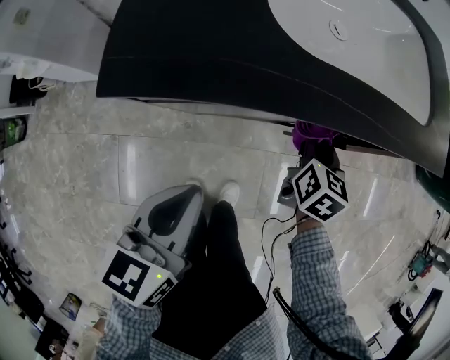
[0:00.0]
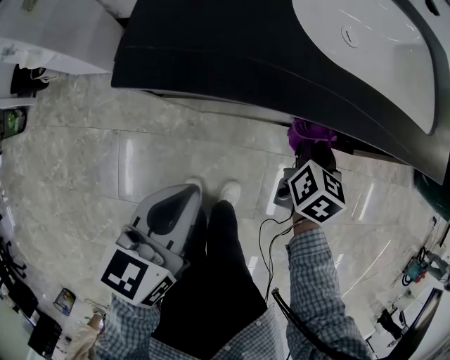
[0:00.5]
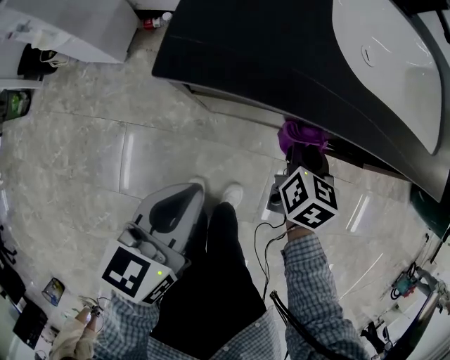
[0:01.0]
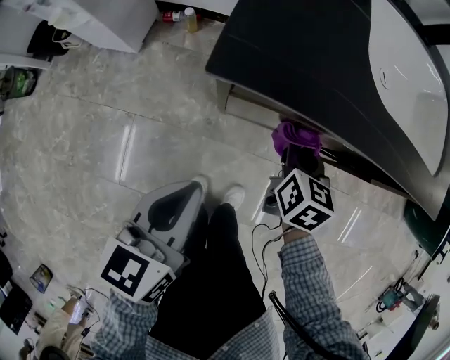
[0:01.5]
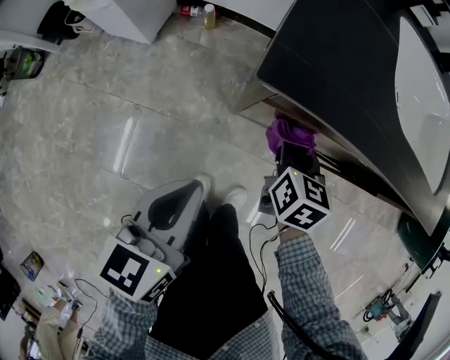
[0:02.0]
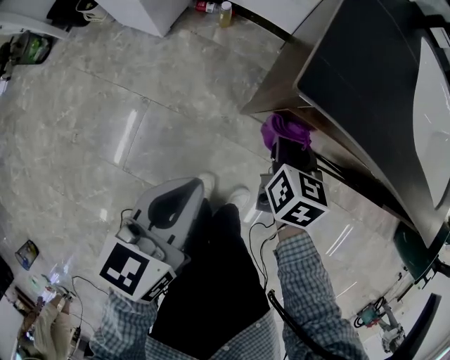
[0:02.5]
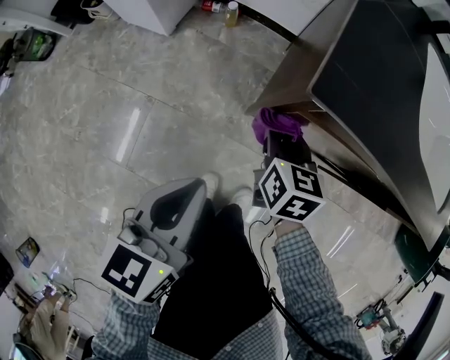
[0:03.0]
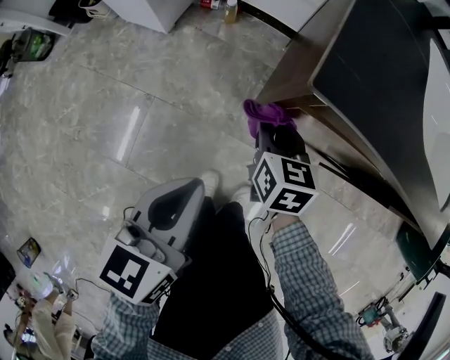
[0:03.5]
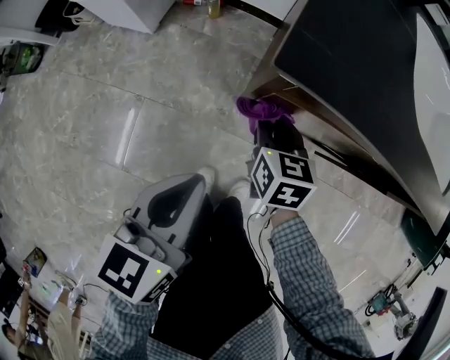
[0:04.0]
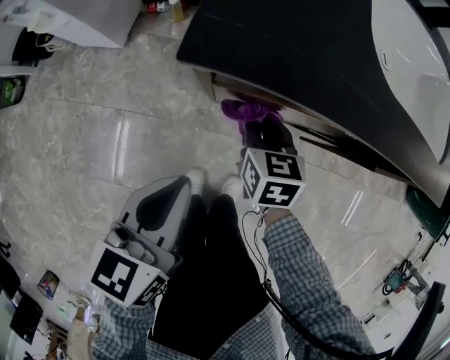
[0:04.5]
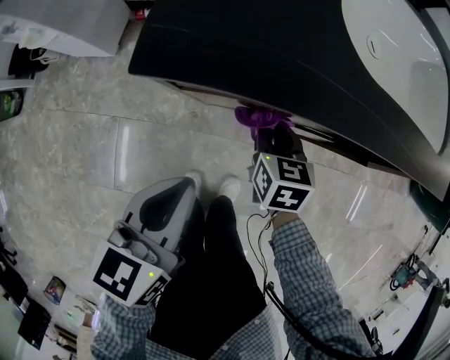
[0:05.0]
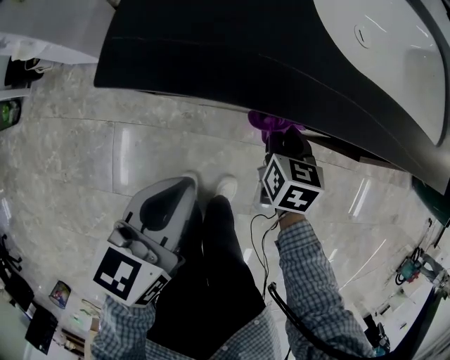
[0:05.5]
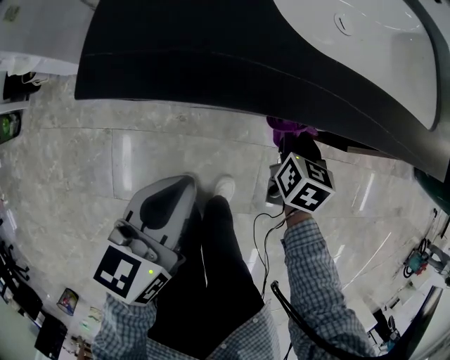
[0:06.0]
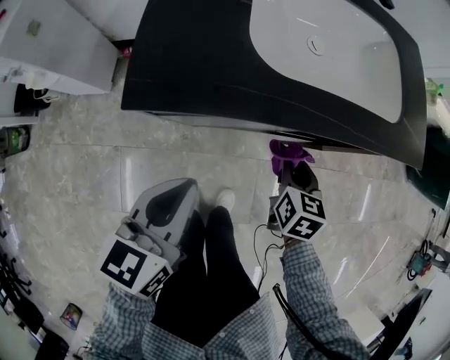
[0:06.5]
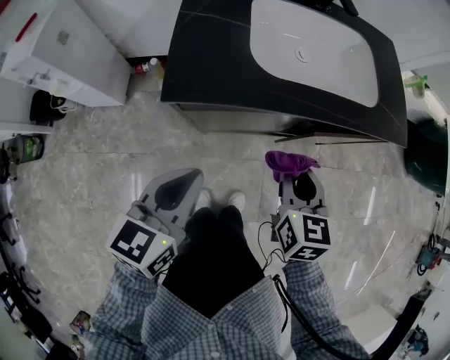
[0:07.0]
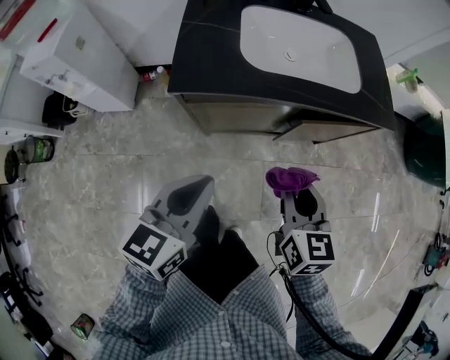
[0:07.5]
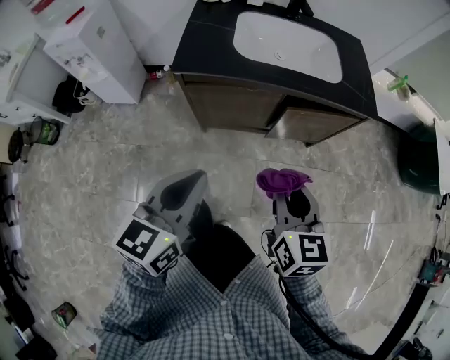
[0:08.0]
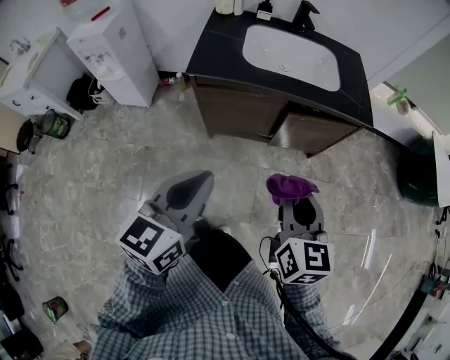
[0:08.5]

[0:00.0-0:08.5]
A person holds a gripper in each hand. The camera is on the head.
0:00.0 to 0:02.0: The right gripper heads to the left, covering roughly 25 cm, and changes its angle by approximately 20 degrees; the left gripper is displaced to the left and backward by approximately 15 cm.
0:02.0 to 0:04.0: The right gripper is displaced to the left by approximately 10 cm.
0:04.0 to 0:06.5: The left gripper travels to the right, upward and forward by some 20 cm; the right gripper moves to the right, some 30 cm, and swivels roughly 30 degrees.
0:06.5 to 0:08.5: The left gripper is displaced backward, upward and to the right by roughly 40 cm; the right gripper shifts approximately 50 cm upward and backward, and turns by approximately 30 degrees.

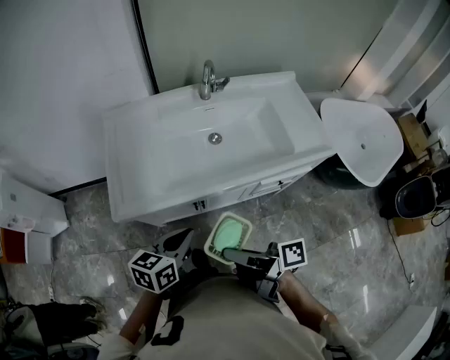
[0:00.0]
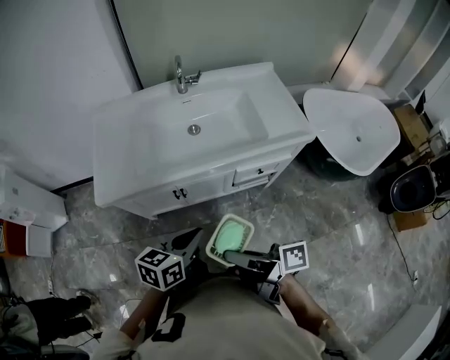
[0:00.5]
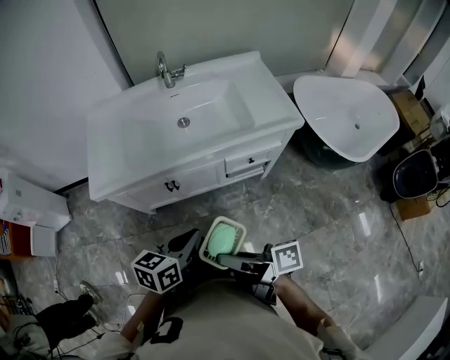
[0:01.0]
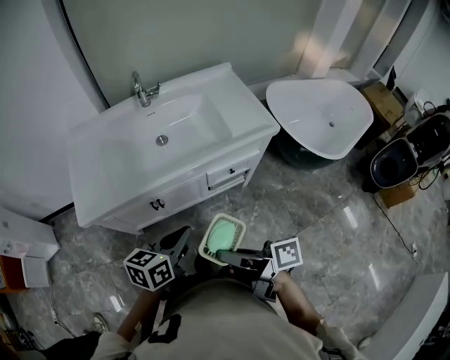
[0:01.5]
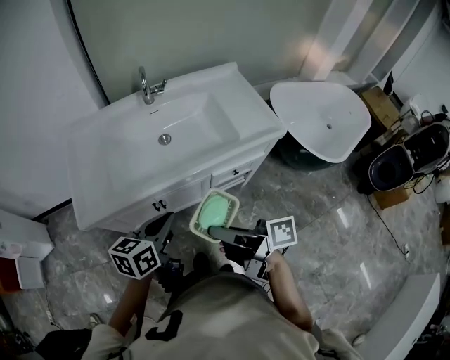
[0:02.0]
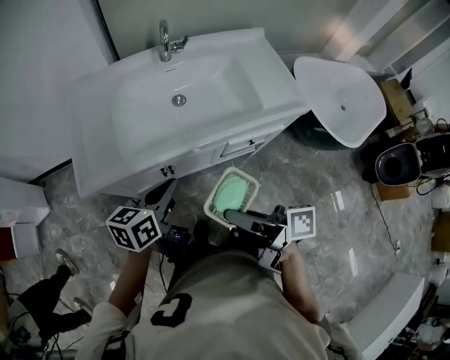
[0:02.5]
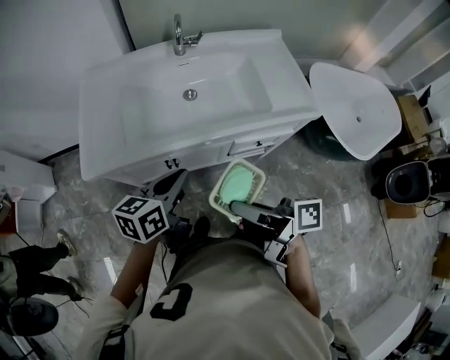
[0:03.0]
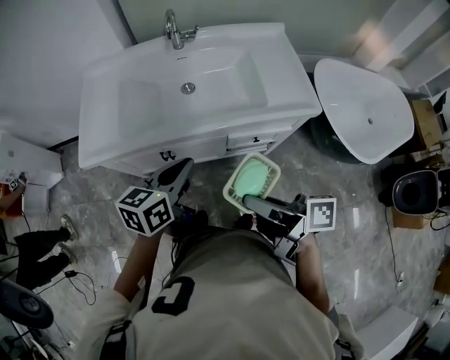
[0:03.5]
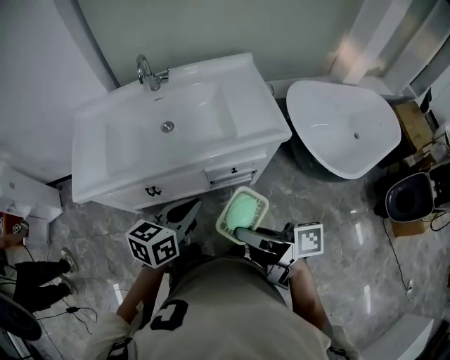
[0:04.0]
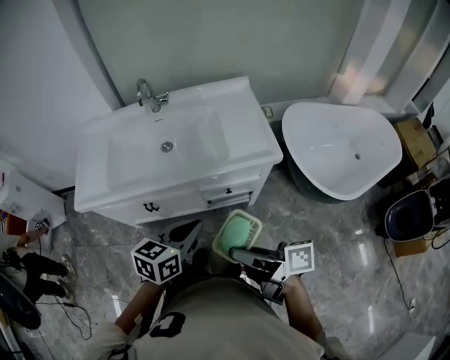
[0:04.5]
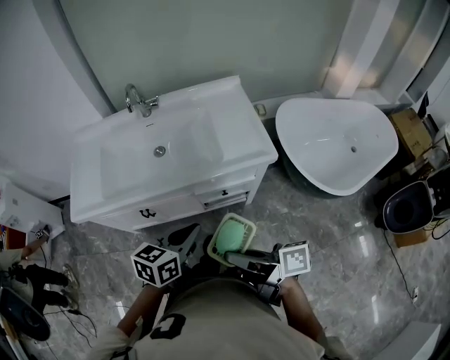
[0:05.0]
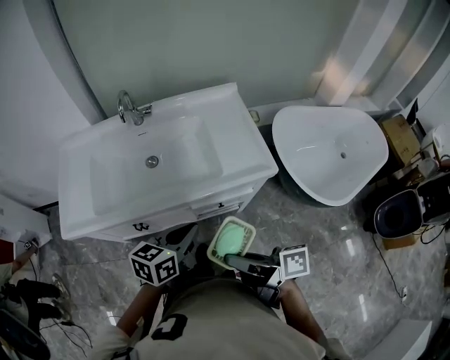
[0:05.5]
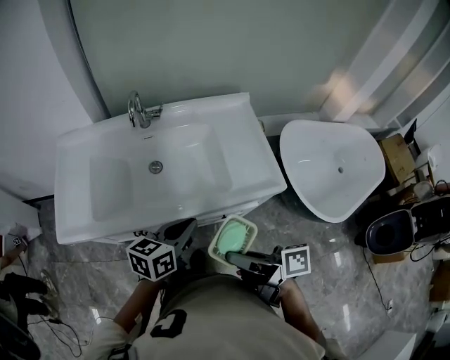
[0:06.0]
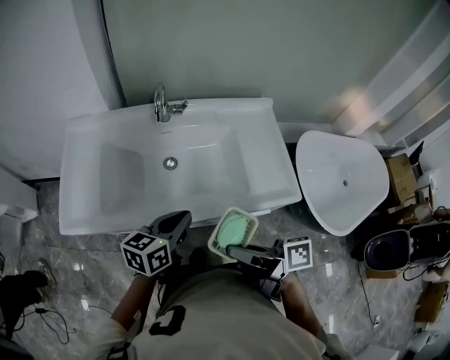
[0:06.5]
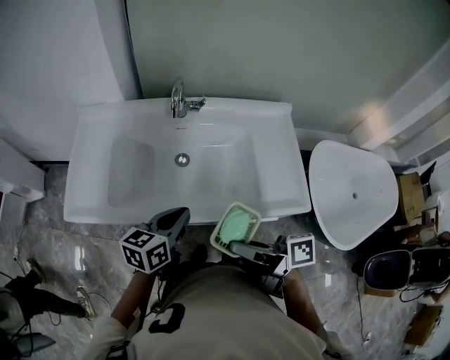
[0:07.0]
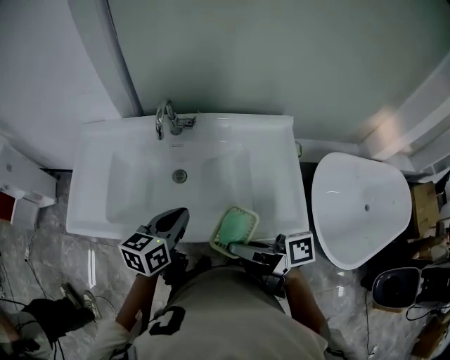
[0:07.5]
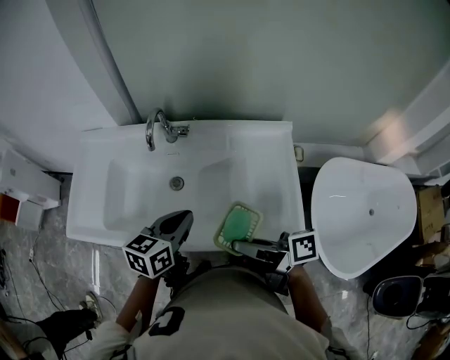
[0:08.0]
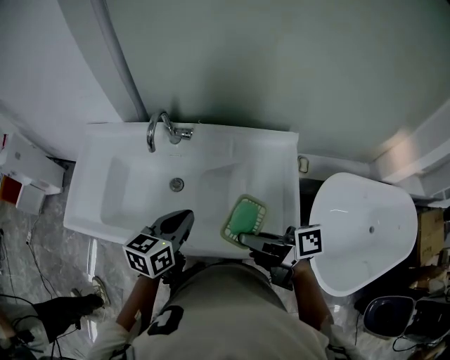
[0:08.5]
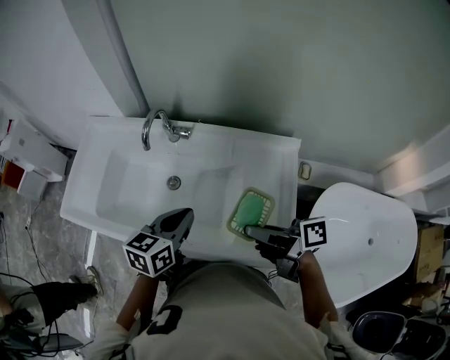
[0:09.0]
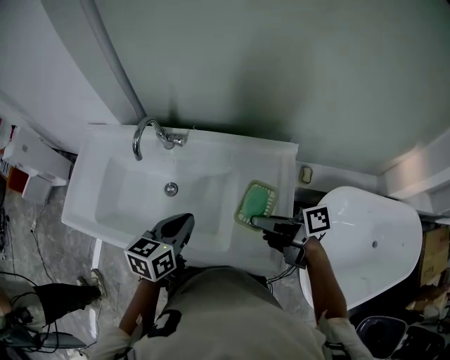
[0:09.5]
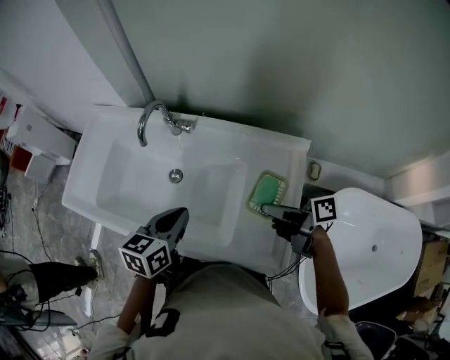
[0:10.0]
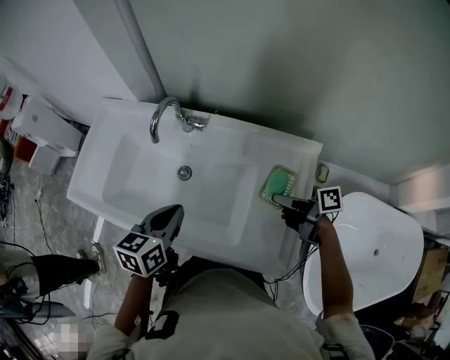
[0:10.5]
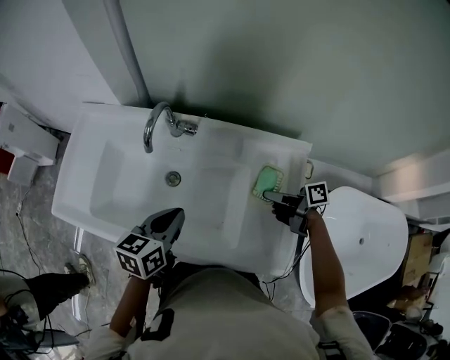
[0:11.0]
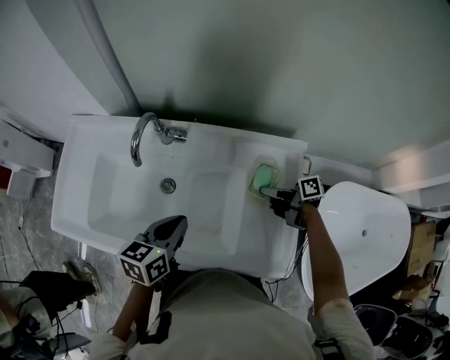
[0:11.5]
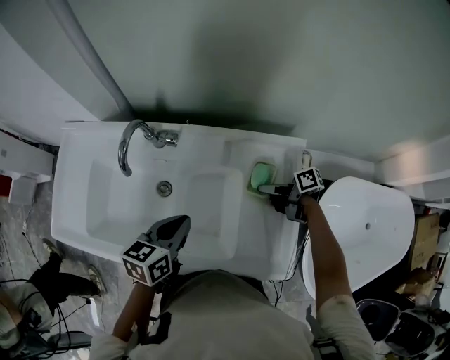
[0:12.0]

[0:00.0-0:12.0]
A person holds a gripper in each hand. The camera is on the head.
0:02.0 to 0:04.0: The left gripper ends up about 20 cm from where it was.
0:04.0 to 0:06.0: The left gripper ends up about 15 cm from where it was.
0:06.0 to 0:08.0: The left gripper shifts by about 15 cm.
0:08.0 to 0:10.0: The left gripper ends up roughly 5 cm from where it was.
0:10.0 to 0:12.0: The left gripper shifts by approximately 5 cm.

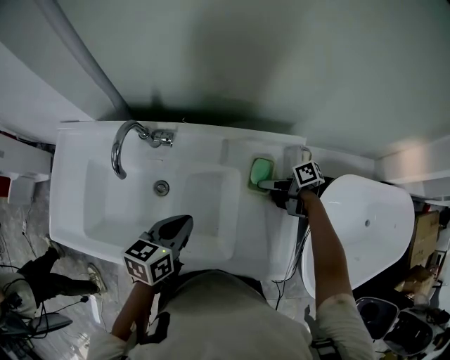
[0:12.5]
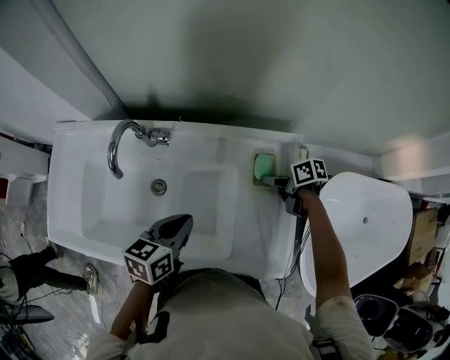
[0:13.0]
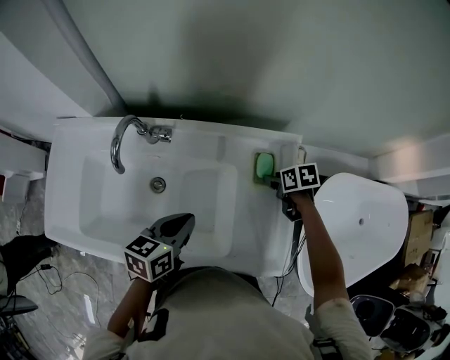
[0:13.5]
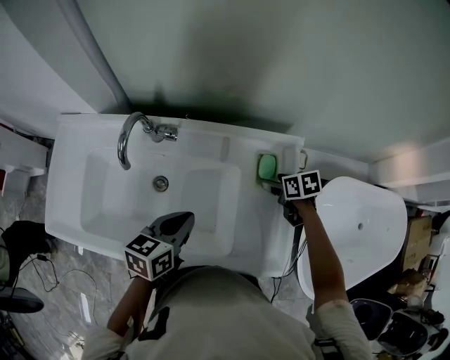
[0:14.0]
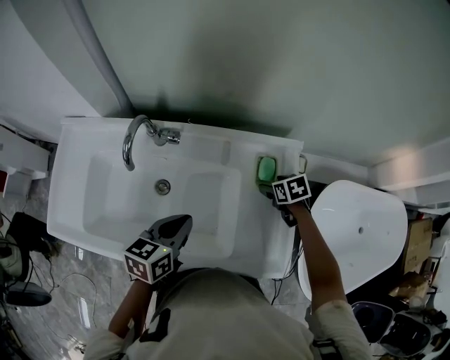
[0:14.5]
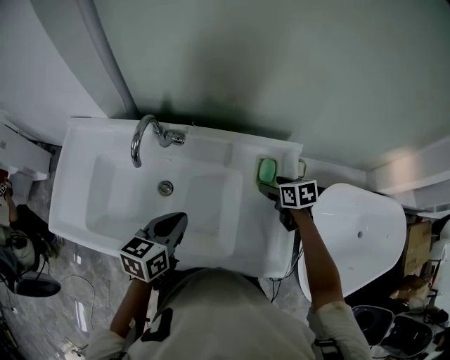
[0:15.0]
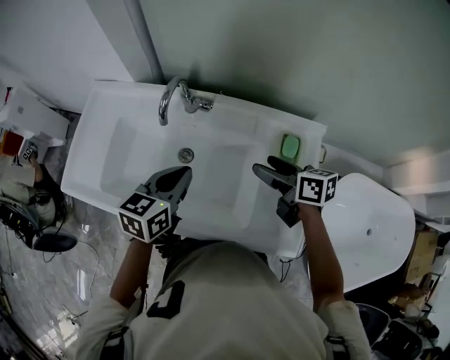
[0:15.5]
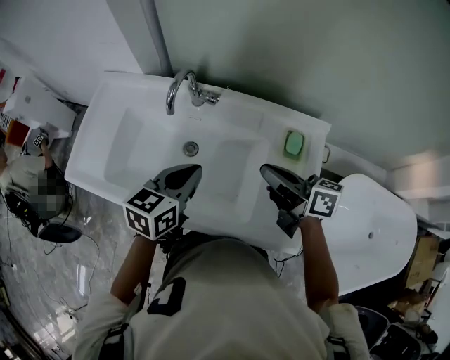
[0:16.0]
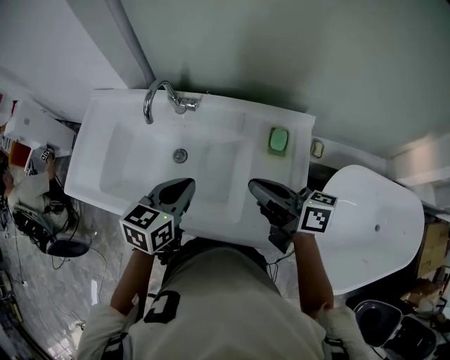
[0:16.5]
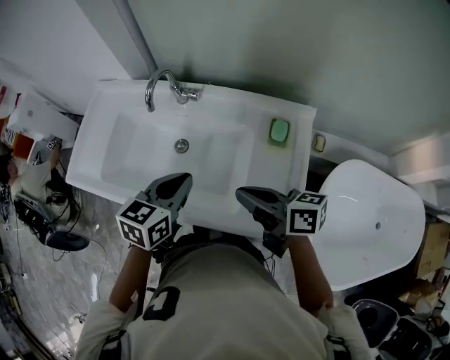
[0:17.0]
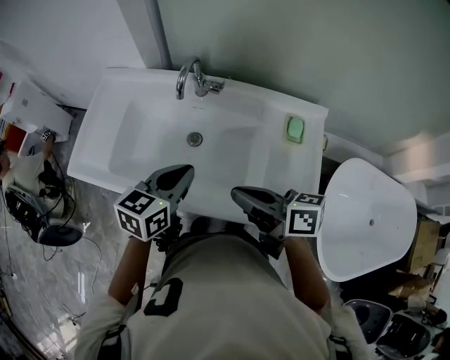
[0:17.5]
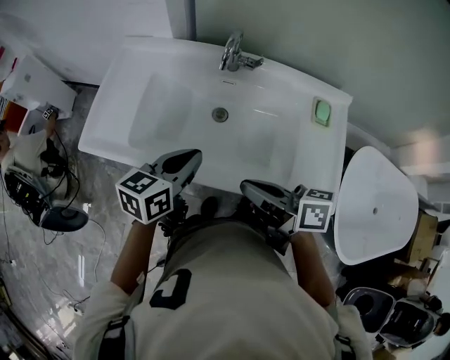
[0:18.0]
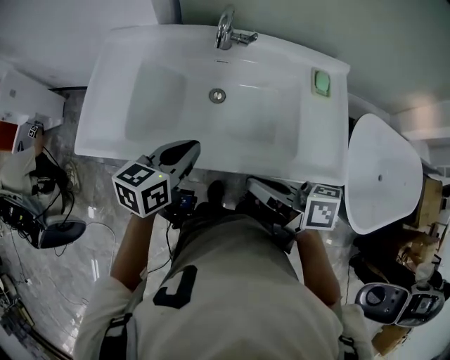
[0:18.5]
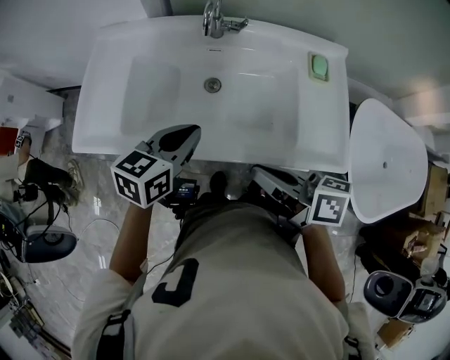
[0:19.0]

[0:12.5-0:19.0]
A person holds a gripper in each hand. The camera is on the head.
0:14.5 to 0:17.0: The left gripper travels upward by approximately 5 cm.
0:17.0 to 0:19.0: The left gripper ends up about 15 cm from where it was.
